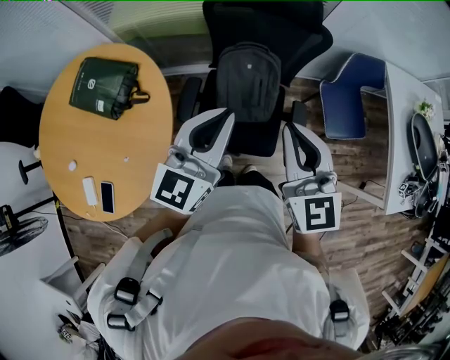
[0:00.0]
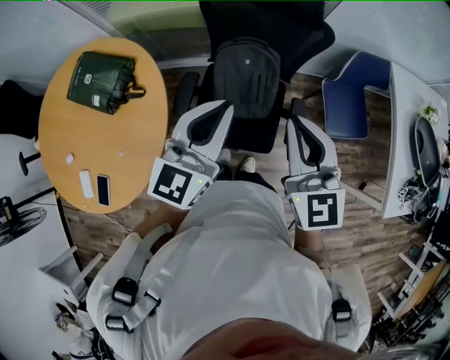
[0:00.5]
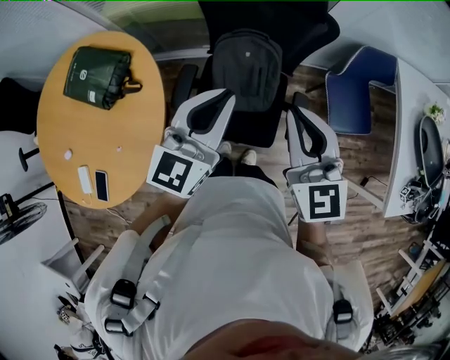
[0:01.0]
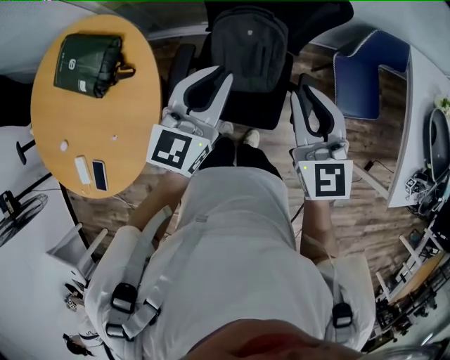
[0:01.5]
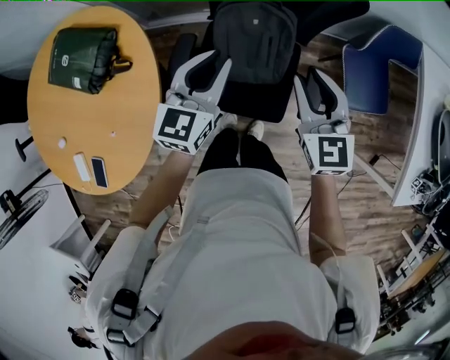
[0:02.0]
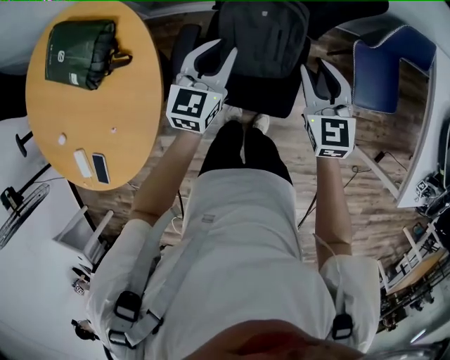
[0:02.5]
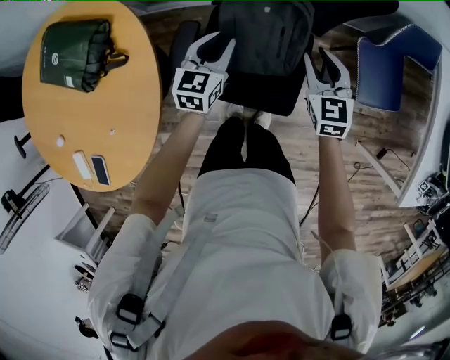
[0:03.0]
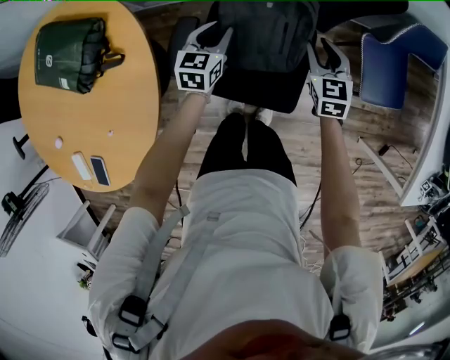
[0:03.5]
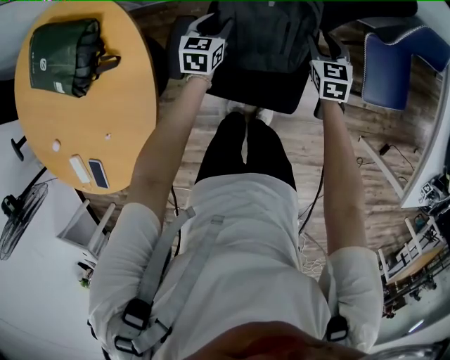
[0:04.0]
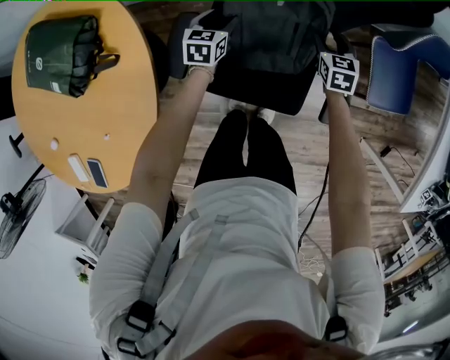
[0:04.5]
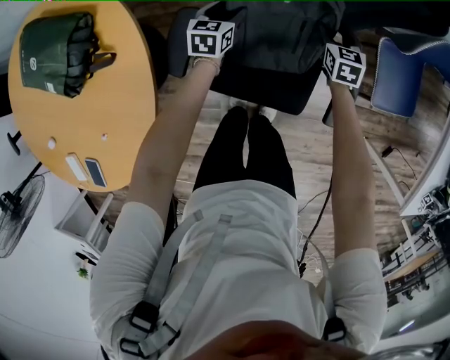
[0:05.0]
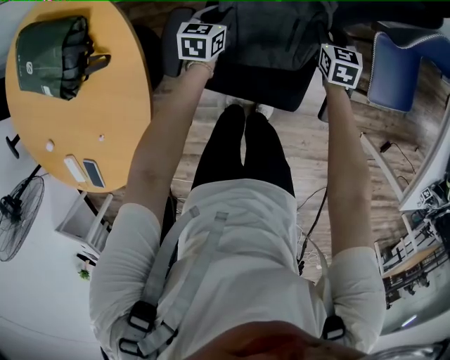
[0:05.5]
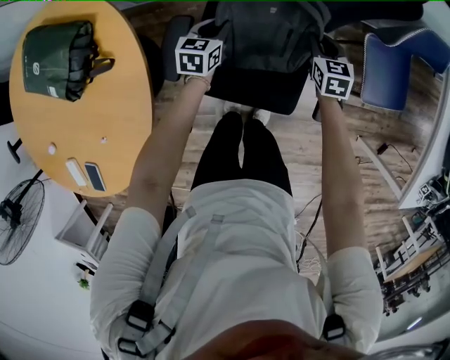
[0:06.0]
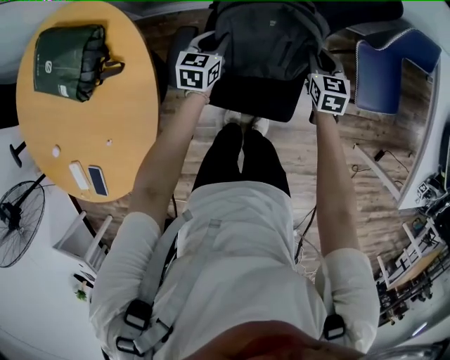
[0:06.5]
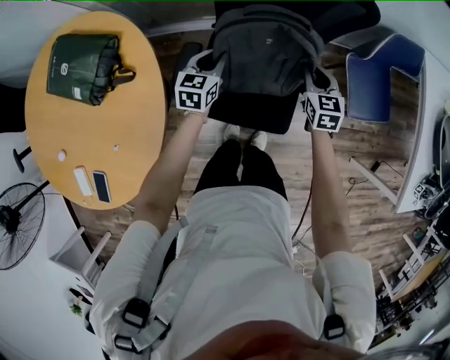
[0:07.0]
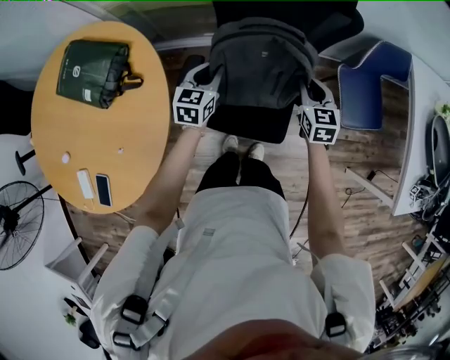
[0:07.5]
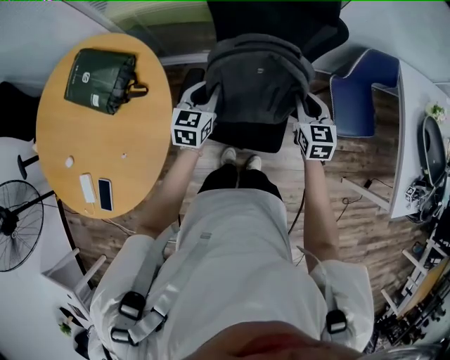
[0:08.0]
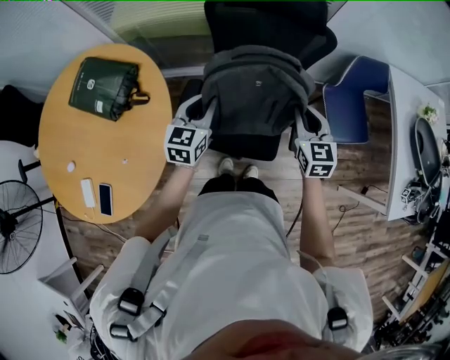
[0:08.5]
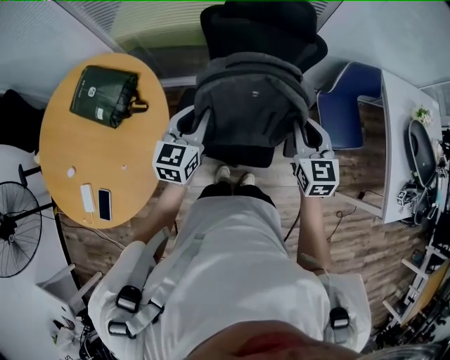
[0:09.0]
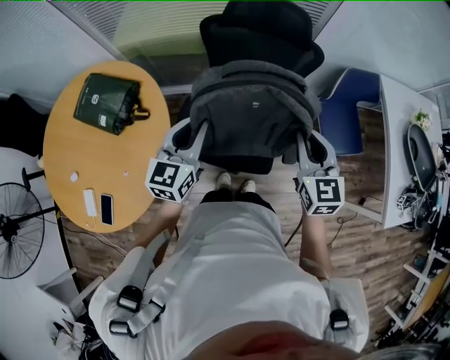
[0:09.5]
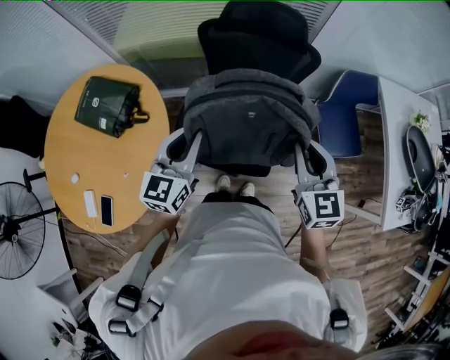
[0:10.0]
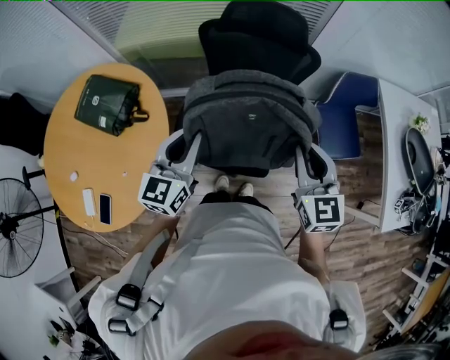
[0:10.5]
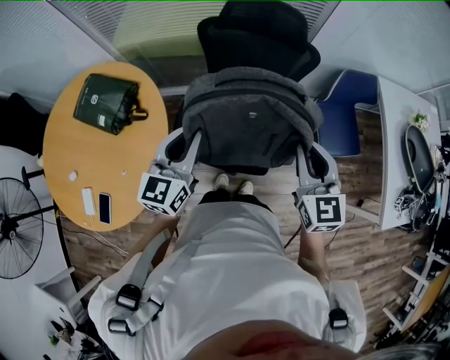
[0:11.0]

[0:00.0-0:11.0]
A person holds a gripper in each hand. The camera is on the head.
0:00.0 to 0:02.0: The grippers both shift downward and forward by approximately 25 cm. The right gripper opens.
0:02.0 to 0:03.5: The left gripper heads downward, covering about 25 cm, while the right gripper goes about 25 cm downward and forward.
0:03.5 to 0:05.5: The left gripper goes approximately 10 cm downward, and opens, then closes again; the right gripper goes roughly 15 cm downward and forward.
0:05.5 to 0:07.5: Both grippers travel together upward and backward, about 25 cm.
0:07.5 to 0:09.0: Both grippers move upward and backward, roughly 20 cm.
0:09.0 to 0:11.0: The two grippers go approximately 10 cm upward.

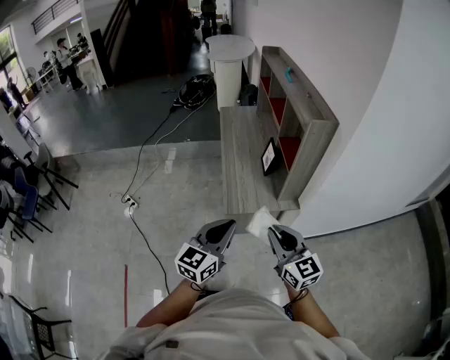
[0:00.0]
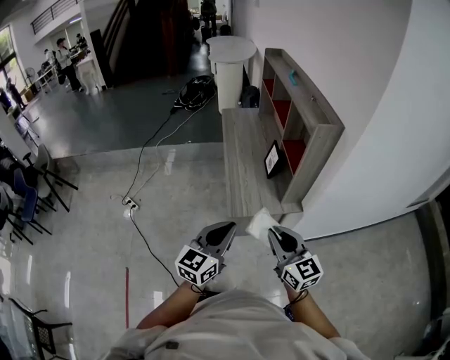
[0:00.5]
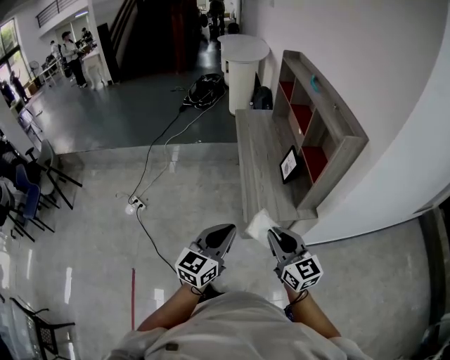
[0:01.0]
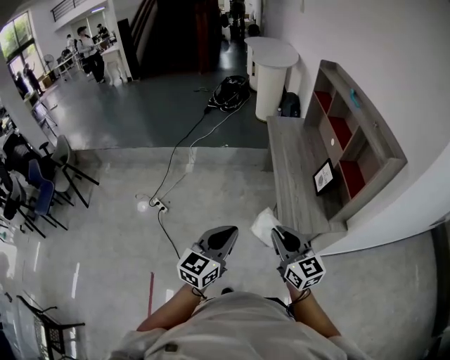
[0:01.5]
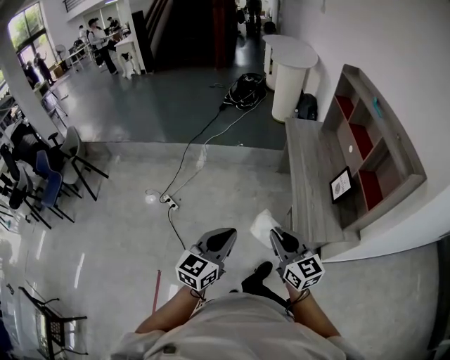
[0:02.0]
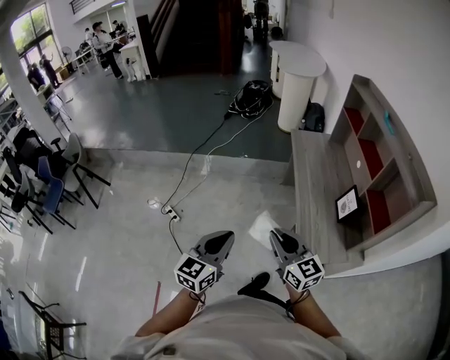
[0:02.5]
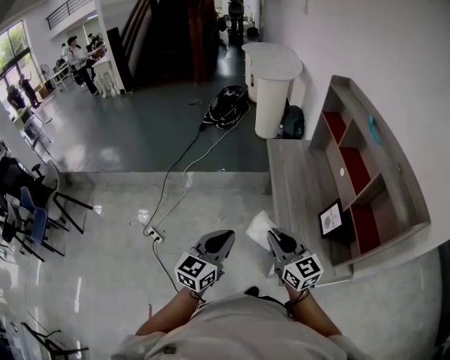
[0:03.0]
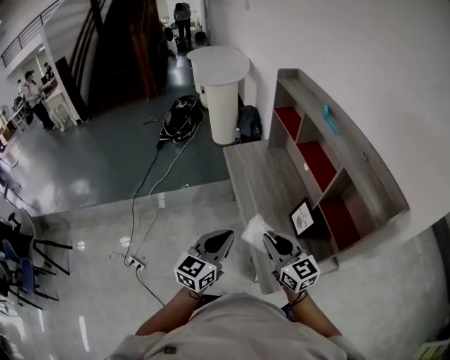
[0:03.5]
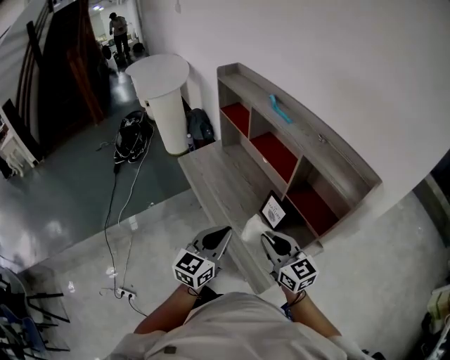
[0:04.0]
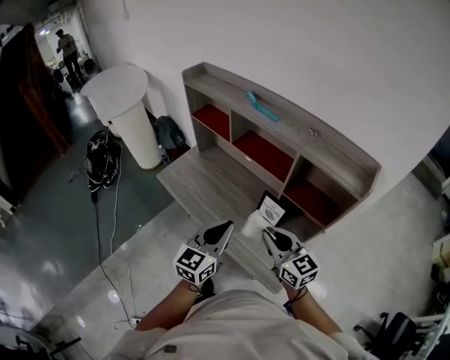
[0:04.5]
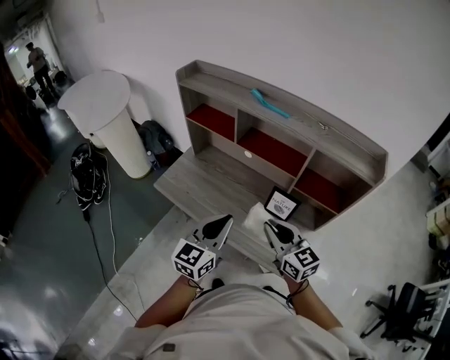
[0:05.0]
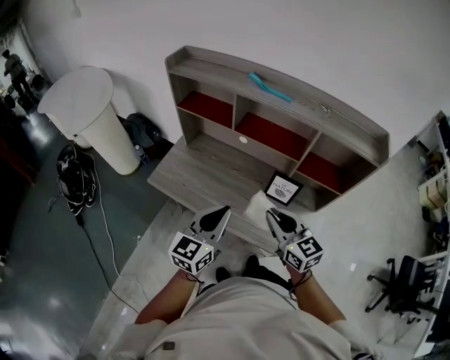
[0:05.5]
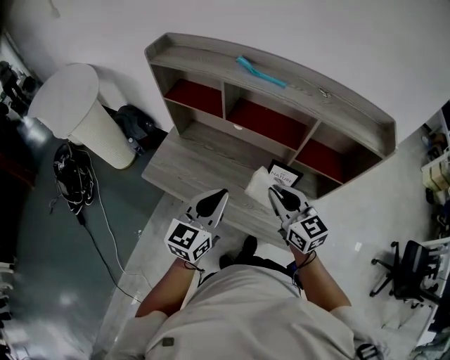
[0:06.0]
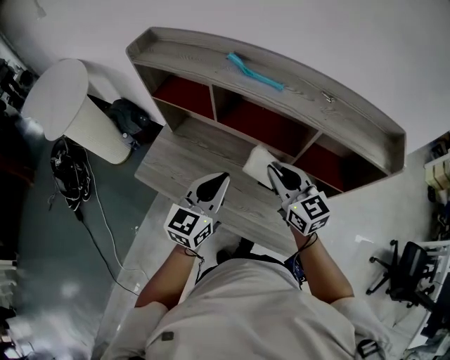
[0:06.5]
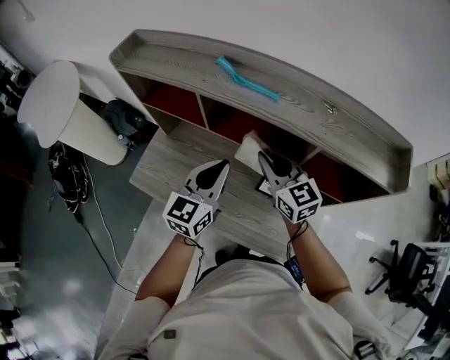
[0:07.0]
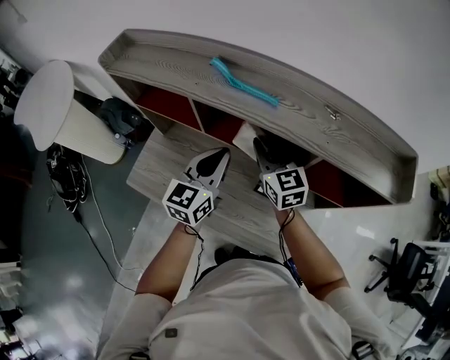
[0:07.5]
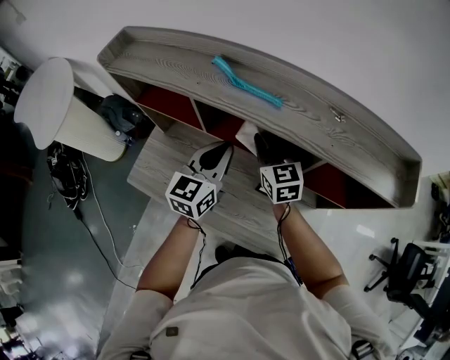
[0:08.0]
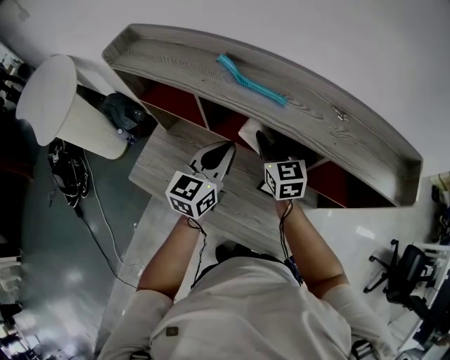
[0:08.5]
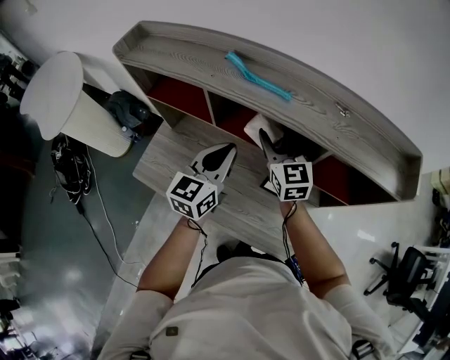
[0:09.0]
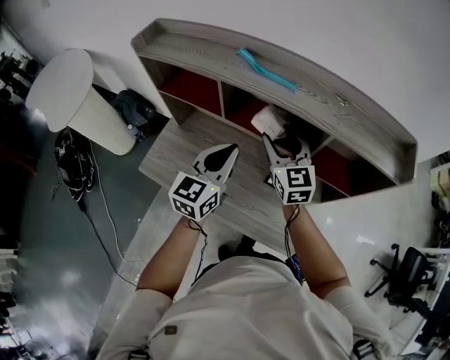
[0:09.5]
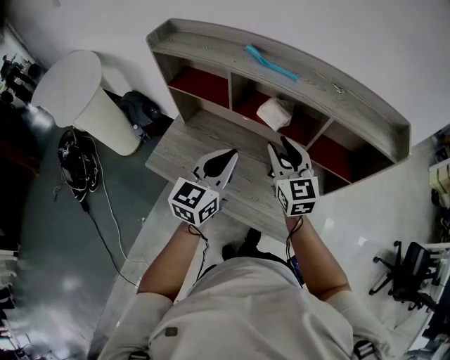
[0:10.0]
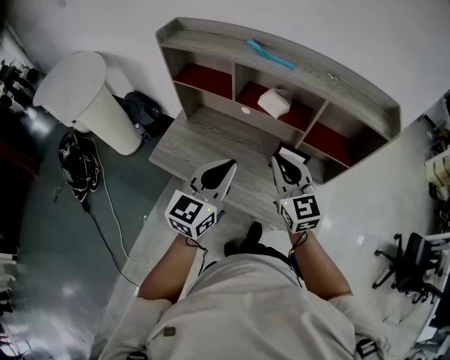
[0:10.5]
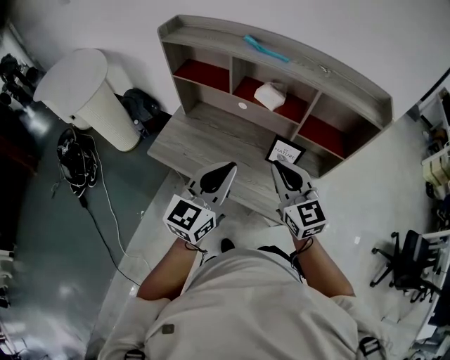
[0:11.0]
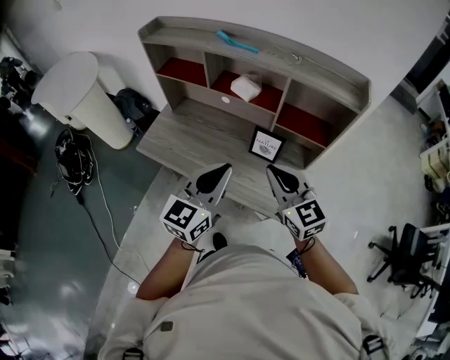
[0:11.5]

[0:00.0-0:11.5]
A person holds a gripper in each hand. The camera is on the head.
0:00.0 to 0:02.0: The left gripper heads to the left, covering roughly 35 cm; the right gripper shifts about 40 cm to the left and forward.
0:02.0 to 0:04.0: The left gripper moves about 50 cm, and rotates approximately 30 degrees. The right gripper moves about 35 cm, and turns by about 30 degrees.
0:04.0 to 0:06.0: The right gripper changes place by about 20 cm, and changes its angle by some 30 degrees, while the left gripper changes place by roughly 25 cm, and rotates approximately 30 degrees.
0:06.0 to 0:07.5: Both grippers travel together forward, some 25 cm.
0:07.5 to 0:09.5: The left gripper moves backward, some 5 cm, while the right gripper changes place by roughly 5 cm, and opens up.
0:09.5 to 0:11.5: Both grippers move backward, approximately 30 cm. The right gripper closes up.

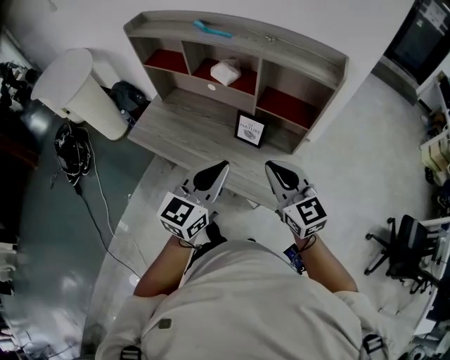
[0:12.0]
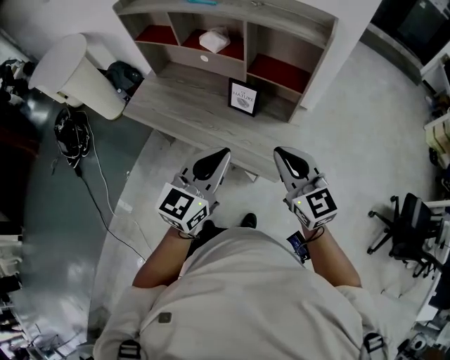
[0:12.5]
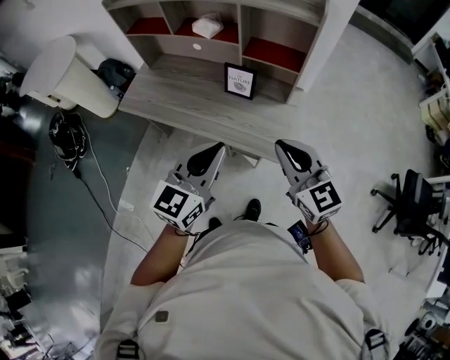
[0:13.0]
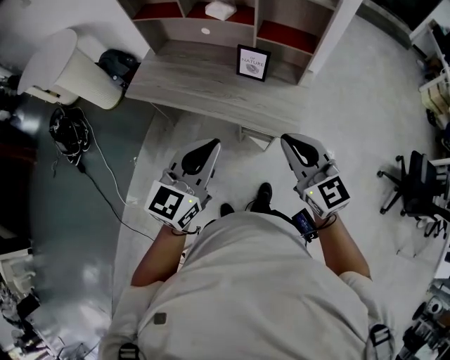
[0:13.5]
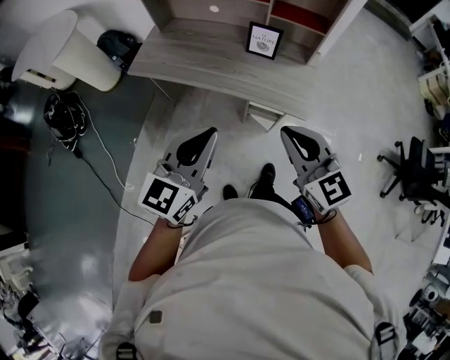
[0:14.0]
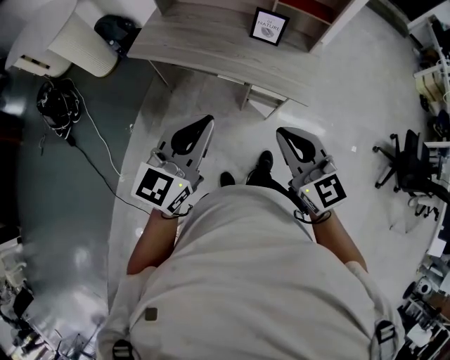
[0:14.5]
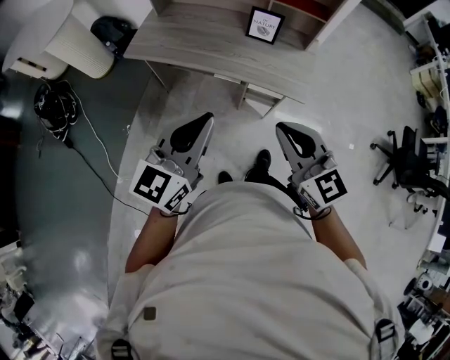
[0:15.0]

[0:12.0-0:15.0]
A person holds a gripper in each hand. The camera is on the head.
0:12.0 to 0:13.5: The left gripper heads backward and to the left, covering roughly 15 cm. Meanwhile the right gripper shifts approximately 15 cm backward.
0:13.5 to 0:15.0: Both grippers move to the left and backward, approximately 15 cm.

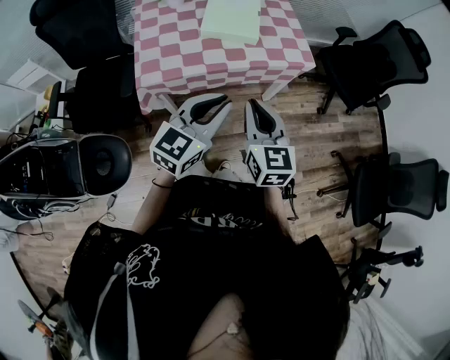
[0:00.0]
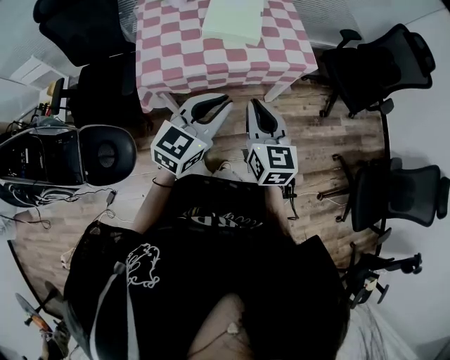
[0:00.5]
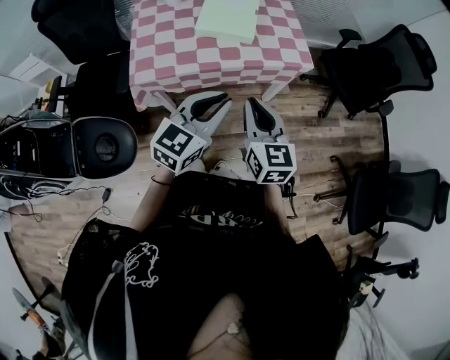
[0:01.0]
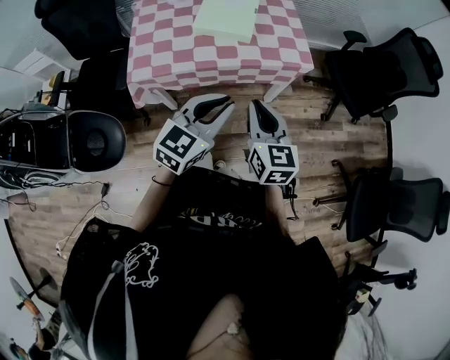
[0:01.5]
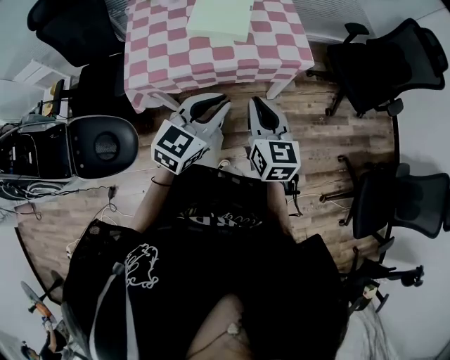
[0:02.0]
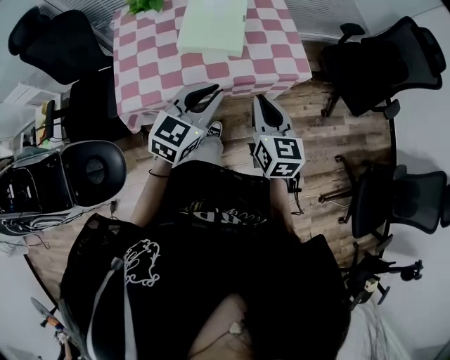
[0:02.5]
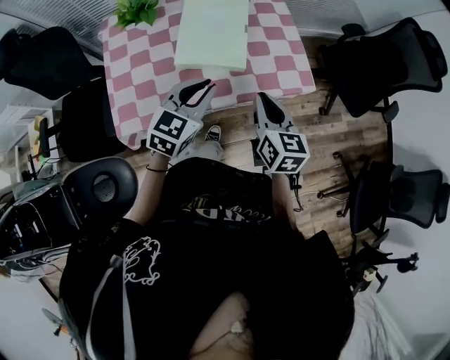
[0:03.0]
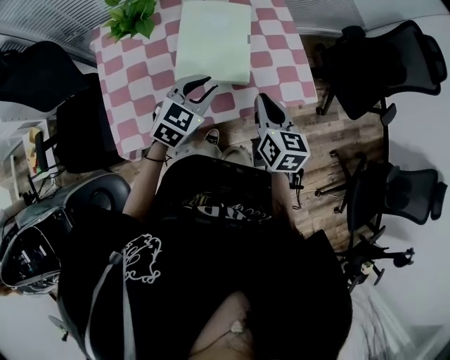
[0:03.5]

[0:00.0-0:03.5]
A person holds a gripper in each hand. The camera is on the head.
0:00.0 to 0:02.0: The grippers both shift to the right and forward by roughly 10 cm.
0:02.0 to 0:03.5: The left gripper is displaced forward and to the left by about 35 cm. Meanwhile the right gripper shifts about 25 cm forward.
